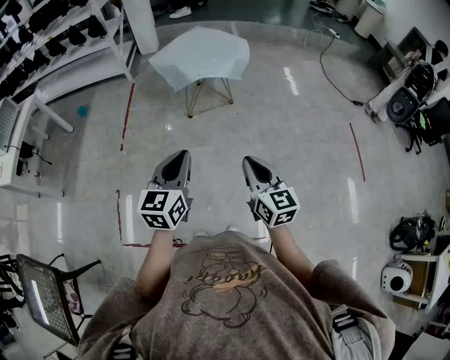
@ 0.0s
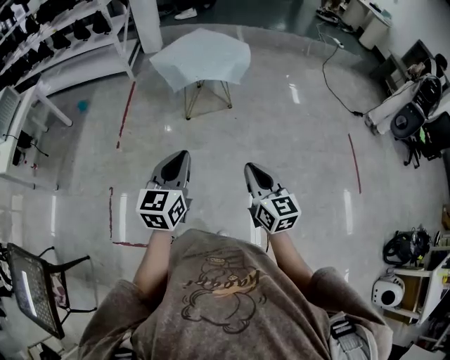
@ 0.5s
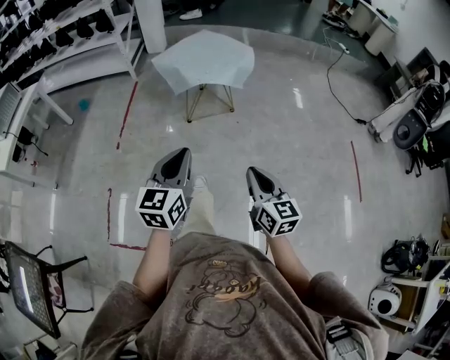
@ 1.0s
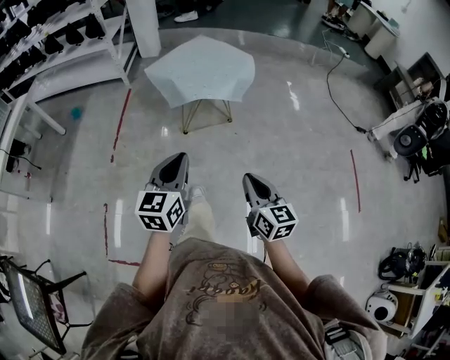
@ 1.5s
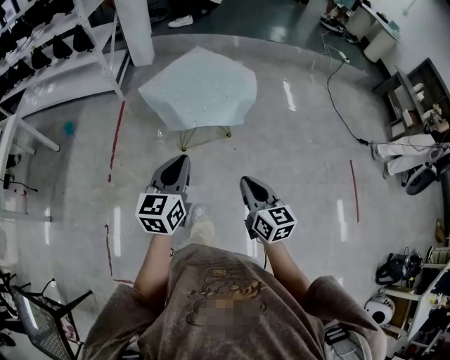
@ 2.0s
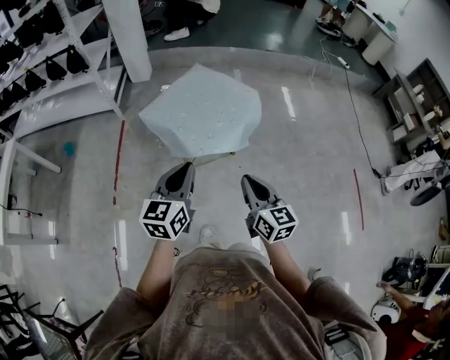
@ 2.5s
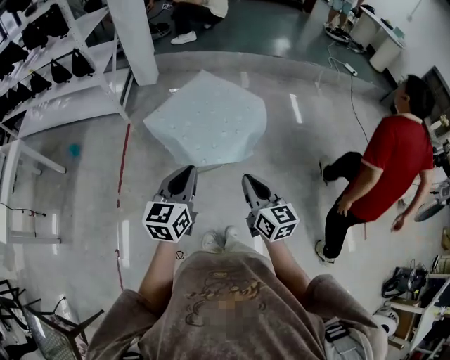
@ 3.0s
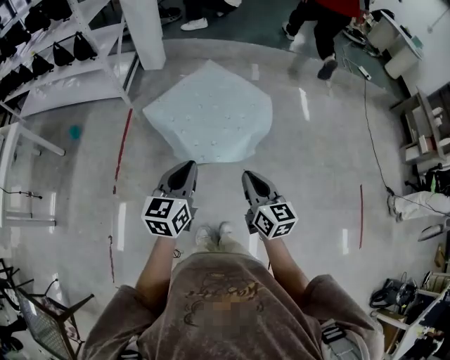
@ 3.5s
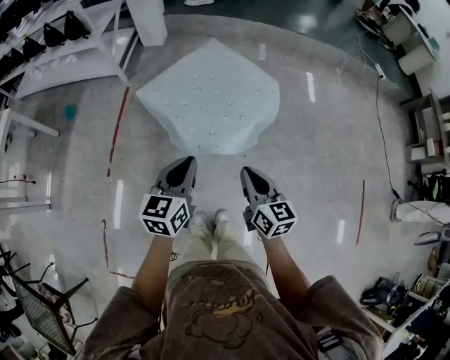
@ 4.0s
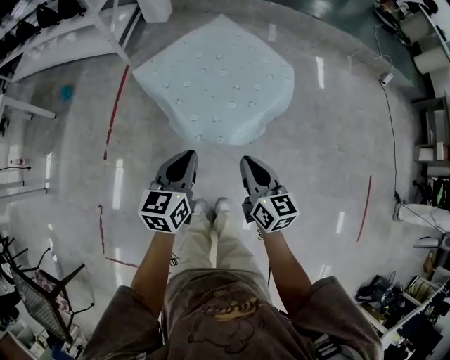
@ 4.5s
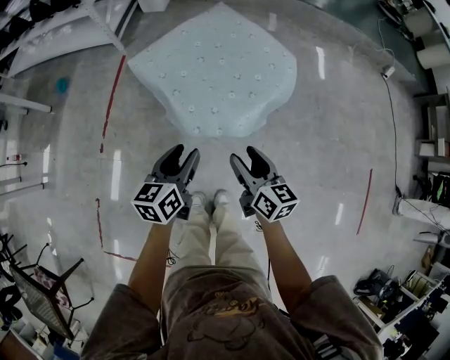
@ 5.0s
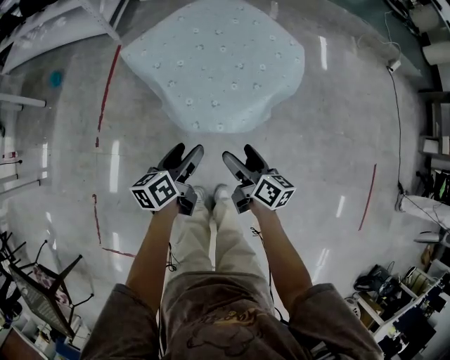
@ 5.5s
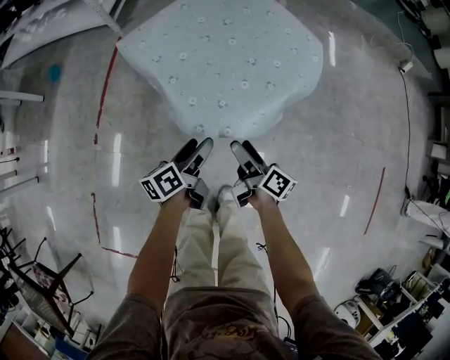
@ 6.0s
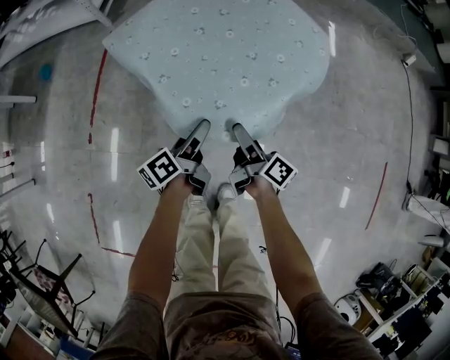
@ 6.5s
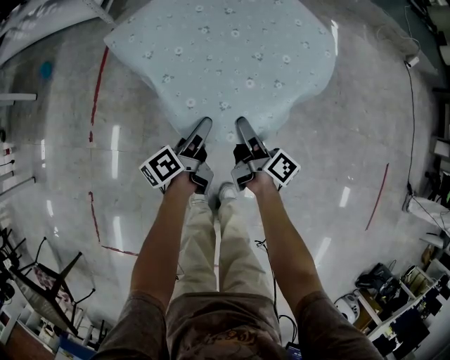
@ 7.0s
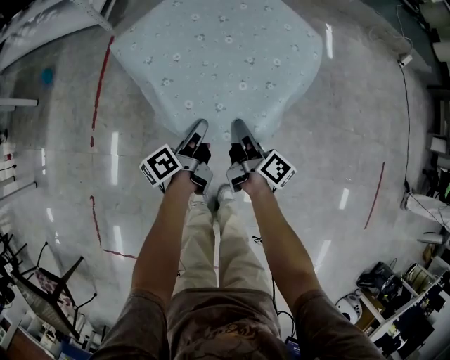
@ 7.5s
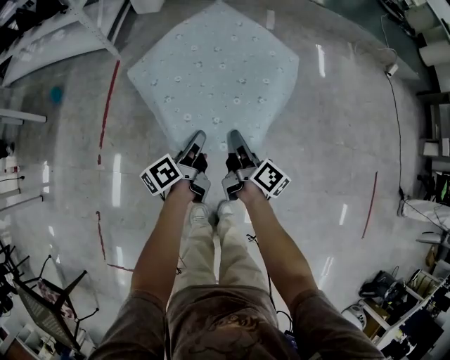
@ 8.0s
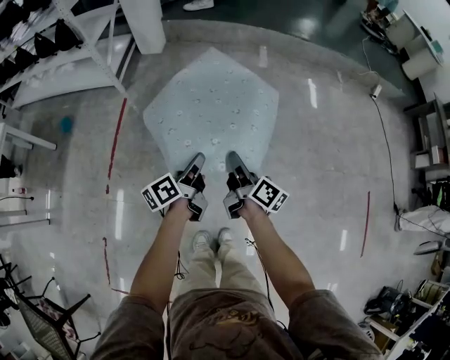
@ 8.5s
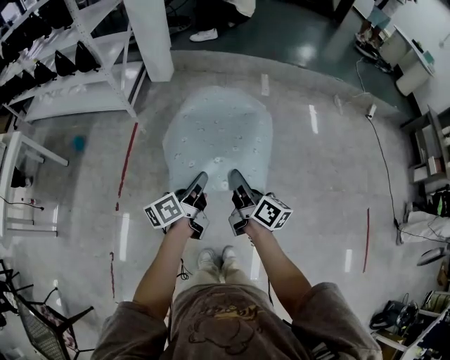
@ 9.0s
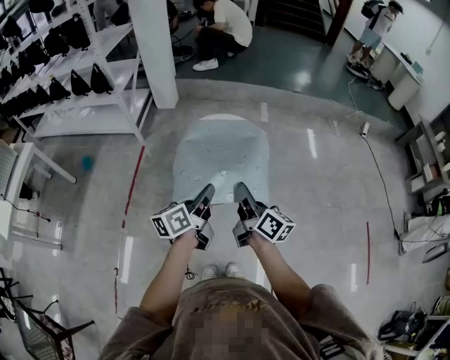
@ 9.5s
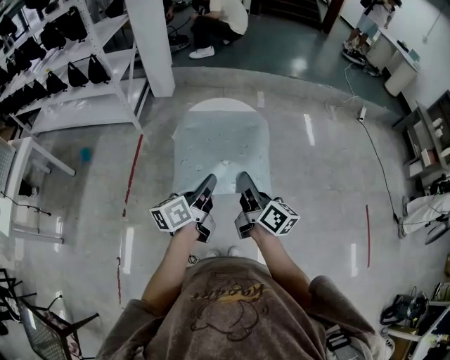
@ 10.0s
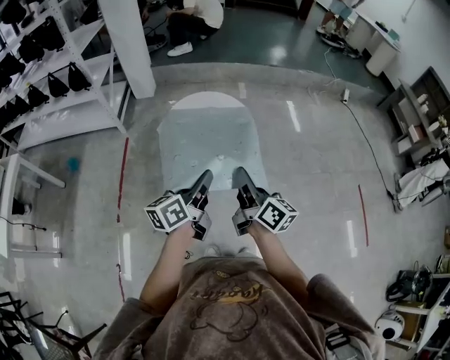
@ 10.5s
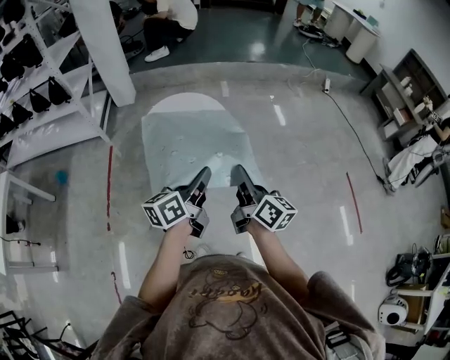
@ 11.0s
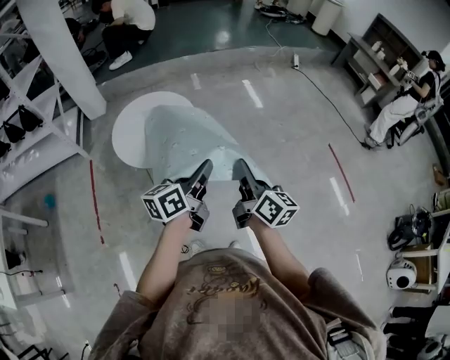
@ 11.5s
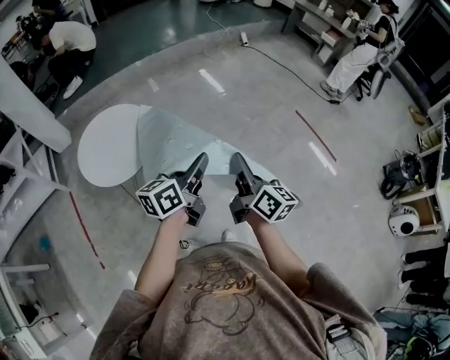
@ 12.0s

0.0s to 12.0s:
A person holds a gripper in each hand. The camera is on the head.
0.0s to 2.0s: Both grippers travel together forward, approximately 30 cm.
2.0s to 4.0s: Both grippers move forward, some 25 cm.
4.0s to 6.0s: Both grippers move downward, some 25 cm. The right gripper rotates around the line of its fingers by roughly 50 degrees, clockwise from behind, and opens its fingers, while the left gripper twists some 50 degrees counterclockwise, seen from behind, and opens up.
6.0s to 8.0s: Both grippers move upward and forward, about 10 cm. The left gripper closes its fingers. Meanwhile the right gripper closes.
8.0s to 10.0s: The grippers both shift upward and backward by approximately 30 cm. The left gripper rotates about 20 degrees. The right gripper swivels about 20 degrees.
10.0s to 12.0s: The right gripper changes place by about 35 cm, and rotates approximately 40 degrees, while the left gripper changes place by some 30 cm, and turns by roughly 40 degrees.

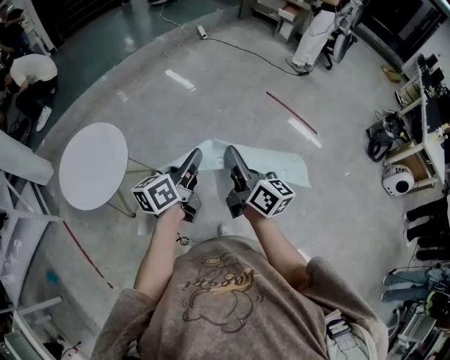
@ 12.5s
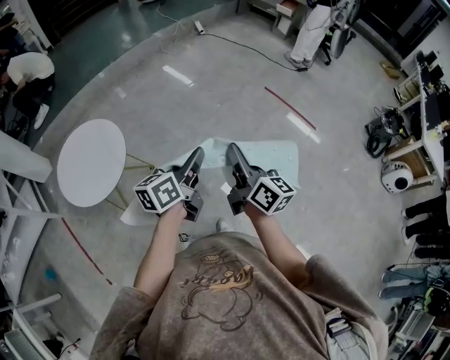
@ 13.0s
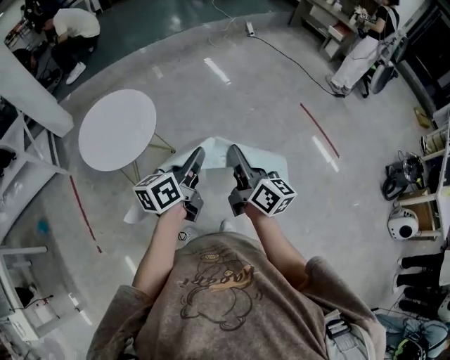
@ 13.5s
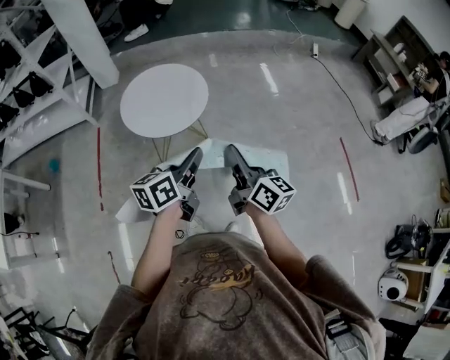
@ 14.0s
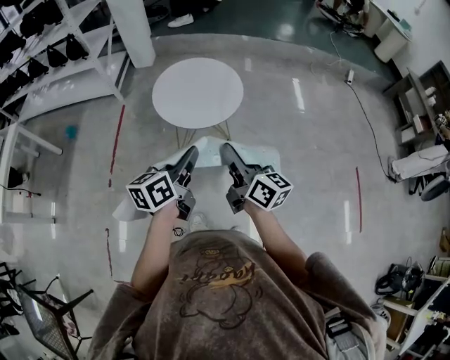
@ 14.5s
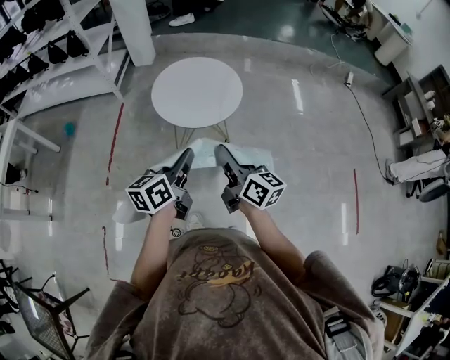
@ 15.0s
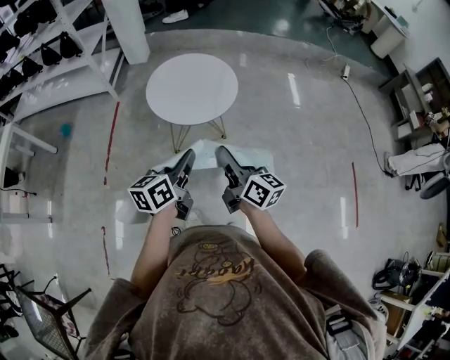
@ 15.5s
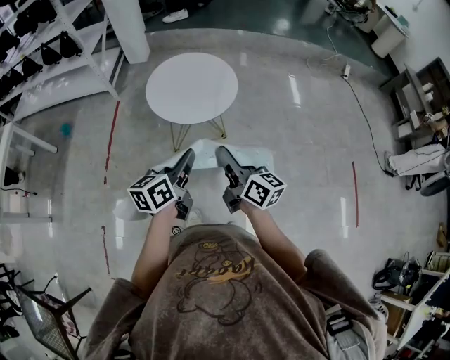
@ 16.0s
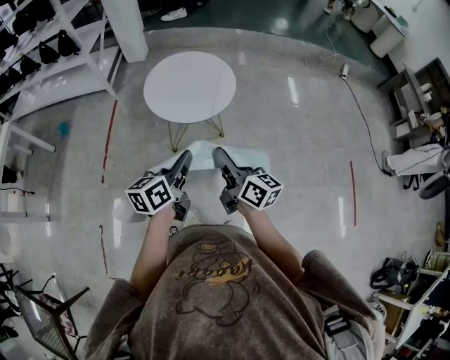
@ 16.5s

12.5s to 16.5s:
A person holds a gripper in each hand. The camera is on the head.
12.5s to 14.5s: The left gripper shifts by about 25 cm, and swivels roughly 50 degrees; the right gripper shifts by about 25 cm, and turns by about 50 degrees.
14.5s to 16.5s: The grippers move only a little.

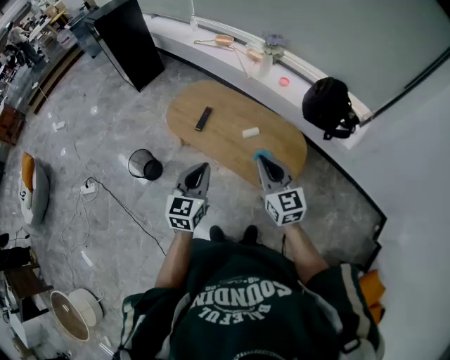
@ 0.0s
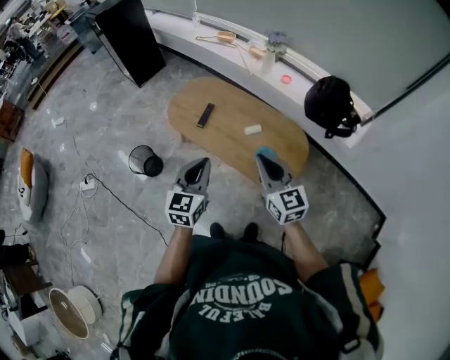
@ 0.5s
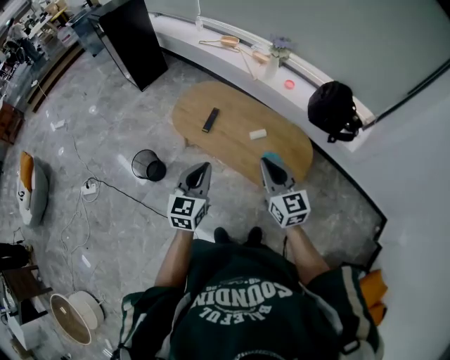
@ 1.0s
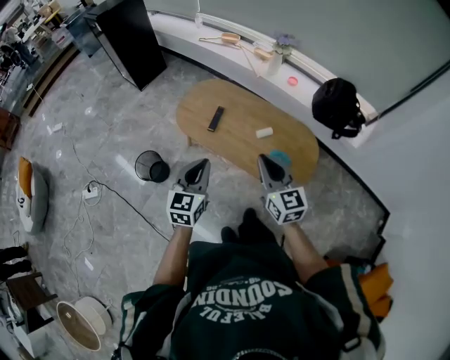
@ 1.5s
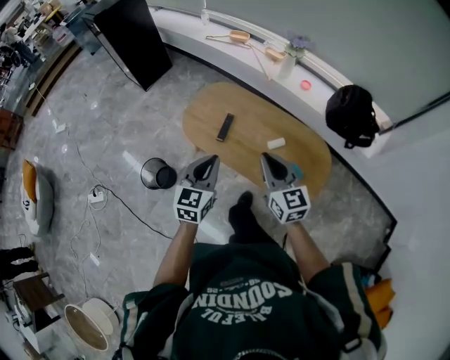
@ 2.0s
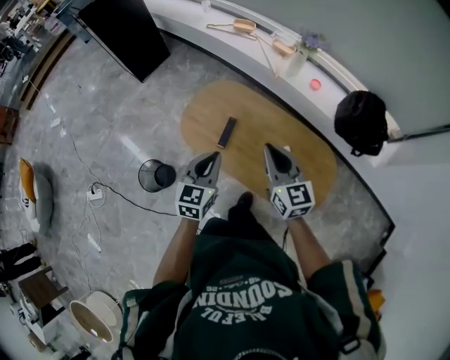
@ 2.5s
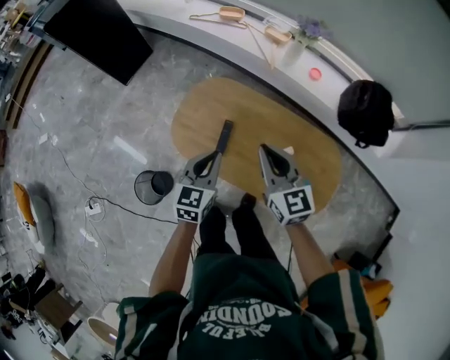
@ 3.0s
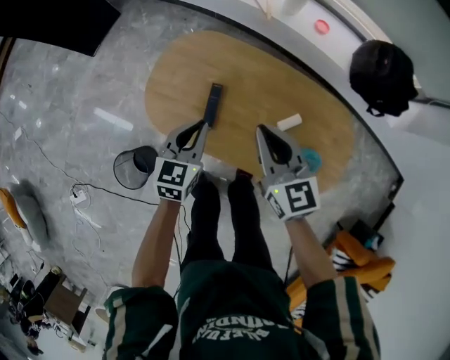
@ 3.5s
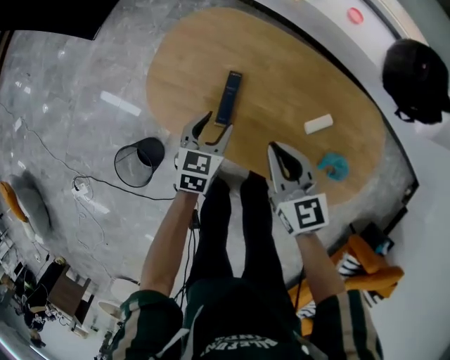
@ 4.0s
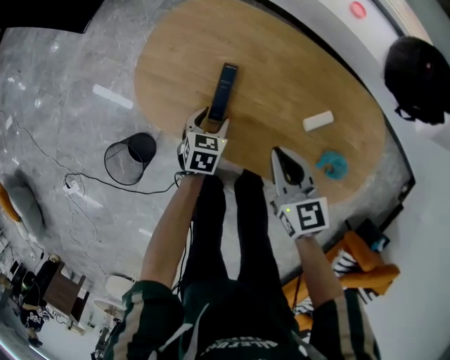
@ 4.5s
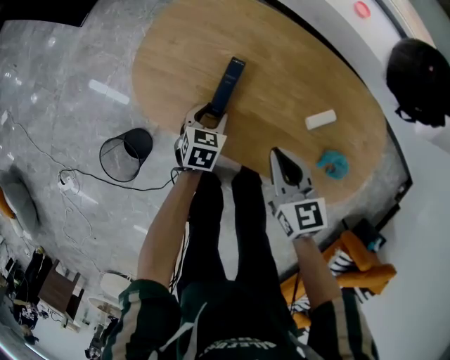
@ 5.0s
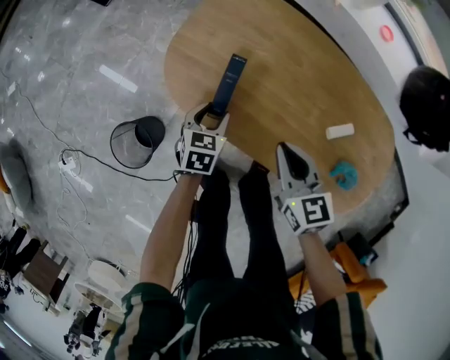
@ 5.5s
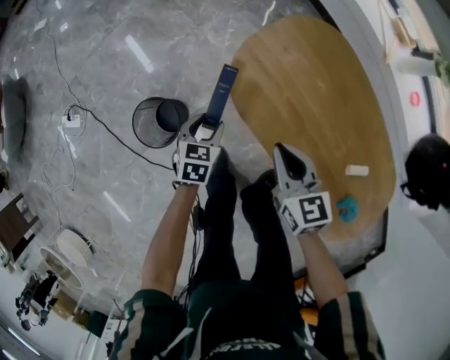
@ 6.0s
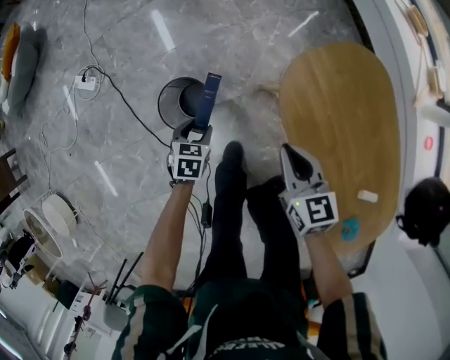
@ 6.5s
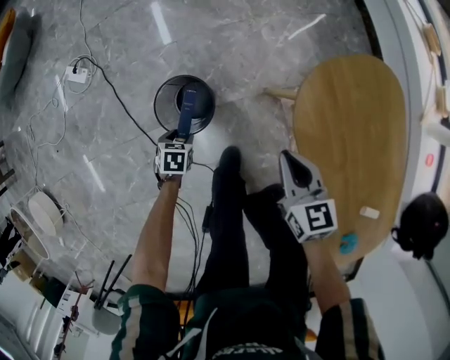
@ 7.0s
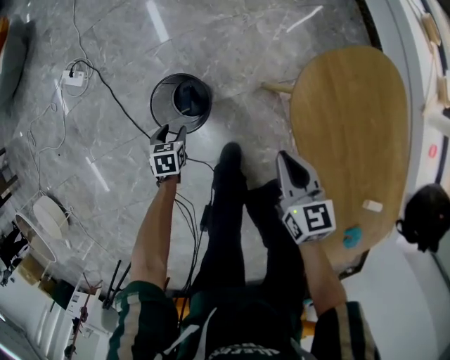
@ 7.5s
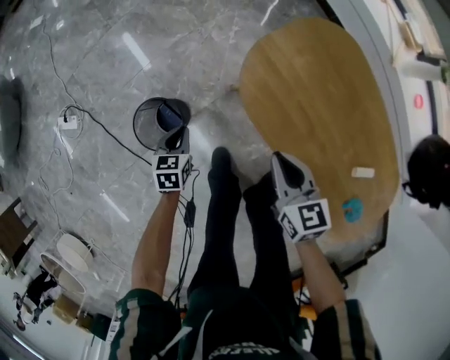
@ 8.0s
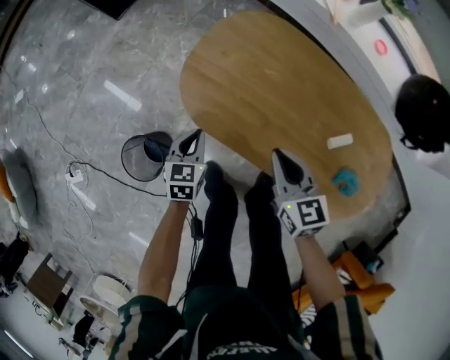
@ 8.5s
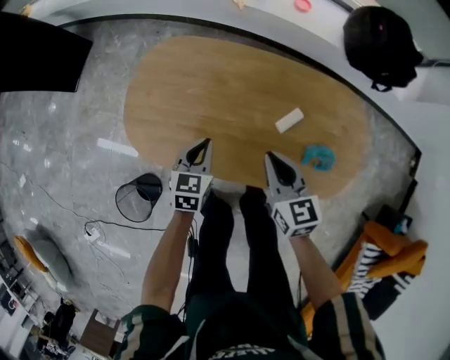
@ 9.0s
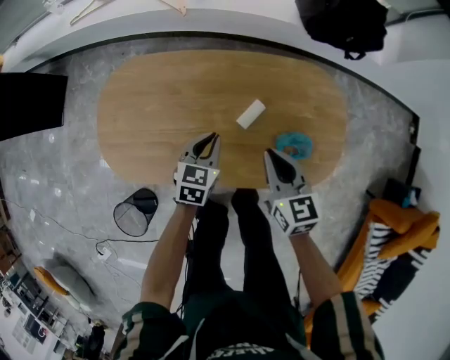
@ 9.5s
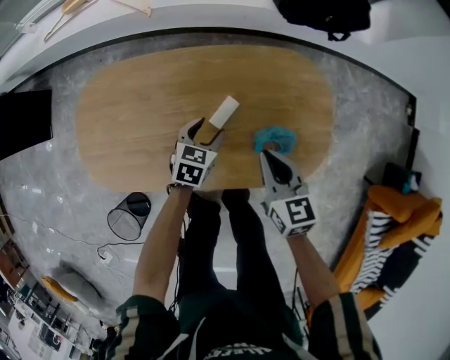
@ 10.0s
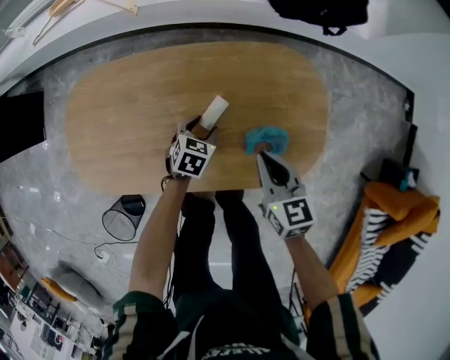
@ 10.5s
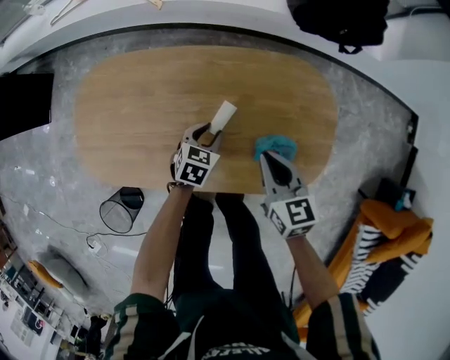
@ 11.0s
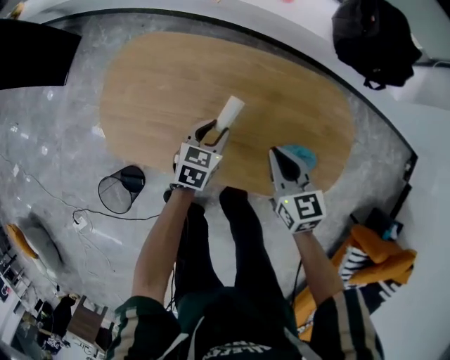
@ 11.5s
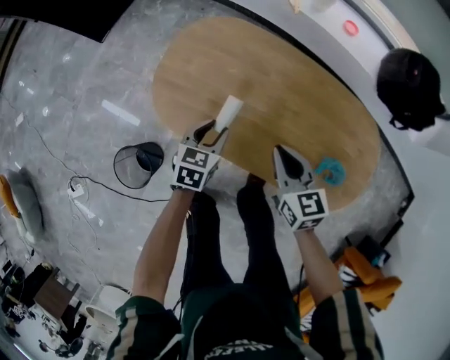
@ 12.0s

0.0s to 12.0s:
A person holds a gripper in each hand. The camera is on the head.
0.0s to 2.0s: Both grippers move forward and to the left, some 20 cm.
2.0s to 4.0s: The two grippers go some 40 cm downward and forward. The right gripper swivels about 20 degrees; the left gripper changes its angle by about 30 degrees, and opens.
4.0s to 6.0s: The right gripper shifts by about 20 cm, and rotates about 20 degrees. Meanwhile the left gripper ends up about 30 cm from where it was, and turns by approximately 30 degrees.
6.0s to 8.0s: The right gripper goes downward and returns, roughly 10 cm each way. Meanwhile the left gripper moves approximately 20 cm downward and comes back, and closes.
8.0s to 10.0s: The two grippers travel together, approximately 60 cm. The left gripper changes its angle by some 70 degrees, and opens, while the right gripper rotates some 50 degrees.
10.0s to 12.0s: The right gripper ends up about 25 cm from where it was, and changes its angle by about 30 degrees, while the left gripper ends up some 30 cm from where it was, and turns by approximately 30 degrees.
